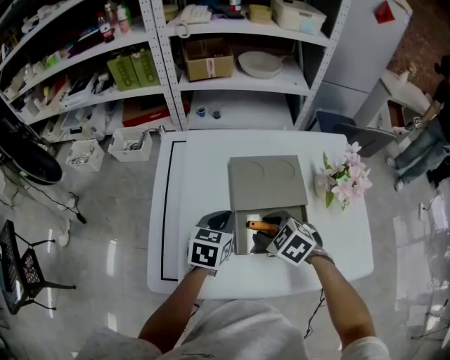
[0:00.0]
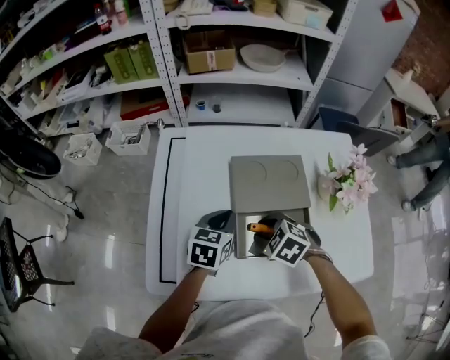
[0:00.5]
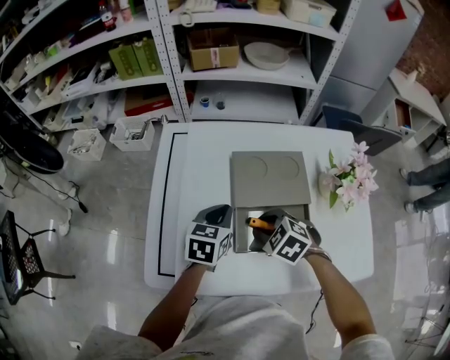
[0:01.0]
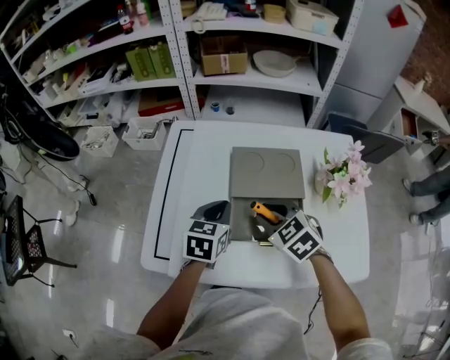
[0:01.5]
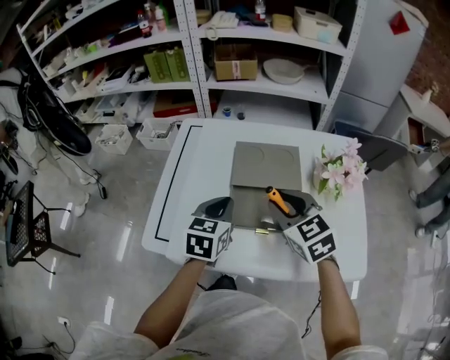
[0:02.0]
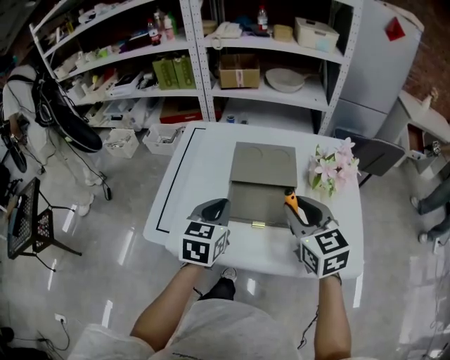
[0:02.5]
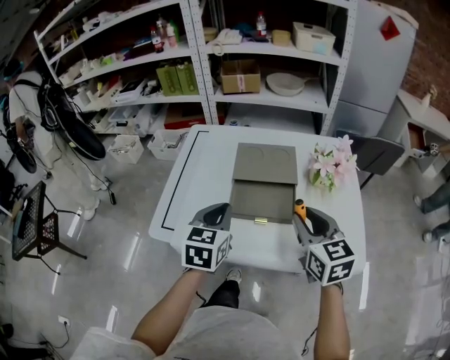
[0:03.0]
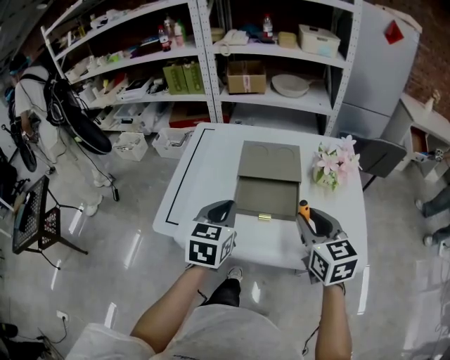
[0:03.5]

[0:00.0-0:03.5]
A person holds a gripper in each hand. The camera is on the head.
0:00.0 to 0:02.0: The left gripper is displaced backward and upward by roughly 10 cm. The right gripper is displaced upward by some 15 cm, and rotates roughly 30 degrees.
0:02.0 to 0:03.5: The left gripper is displaced backward by some 10 cm, while the right gripper moves backward and to the right, about 15 cm, and rotates roughly 20 degrees.

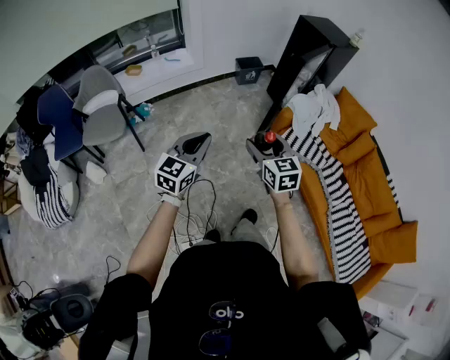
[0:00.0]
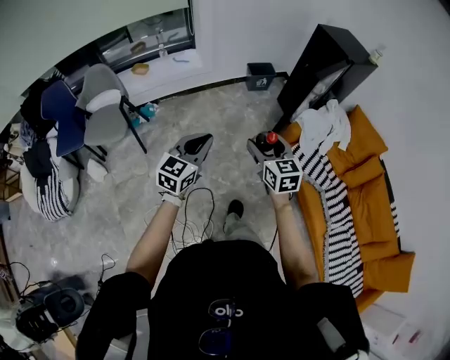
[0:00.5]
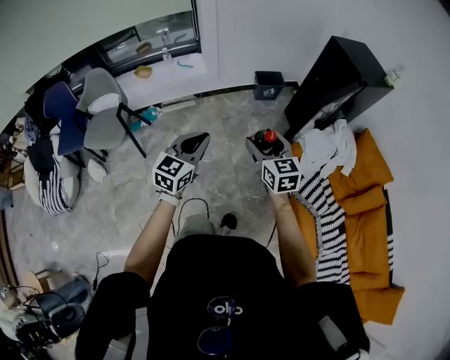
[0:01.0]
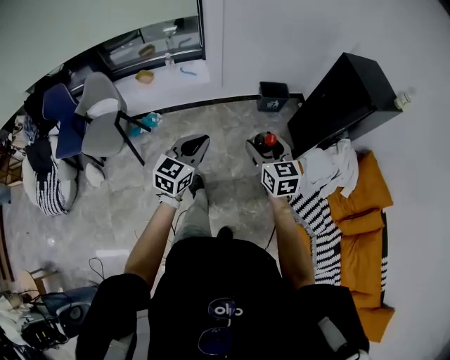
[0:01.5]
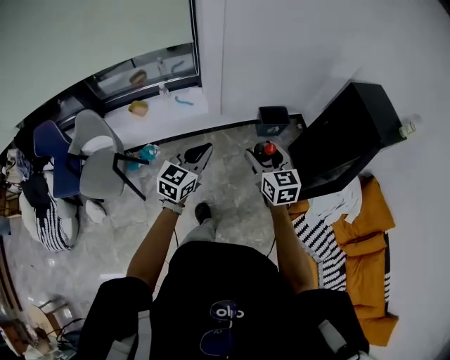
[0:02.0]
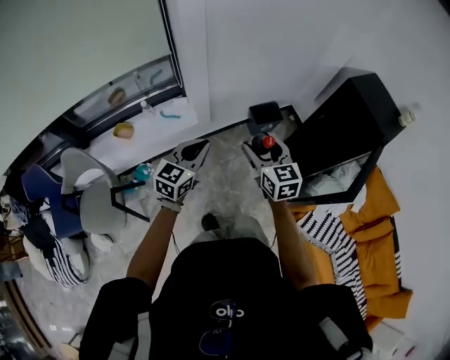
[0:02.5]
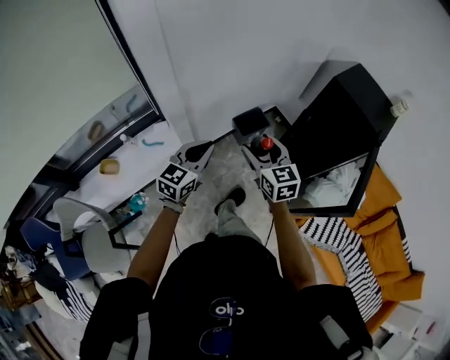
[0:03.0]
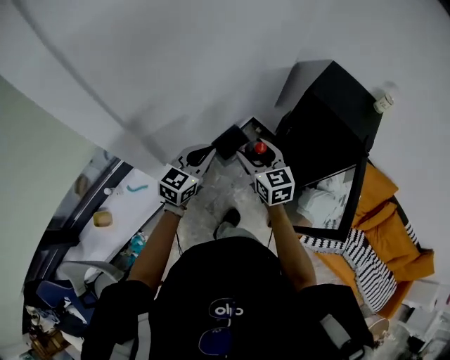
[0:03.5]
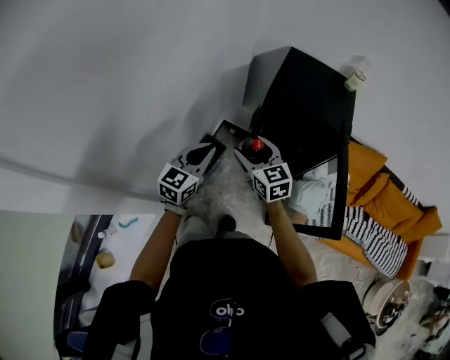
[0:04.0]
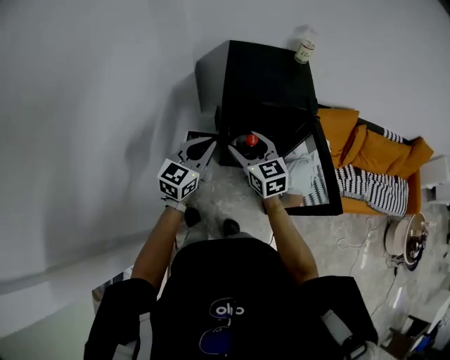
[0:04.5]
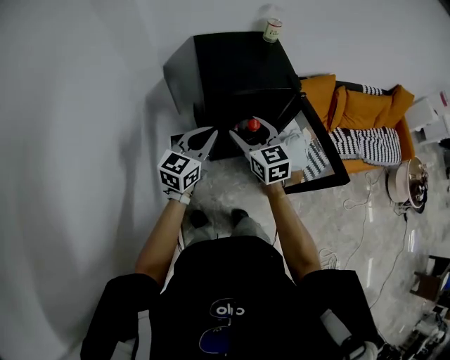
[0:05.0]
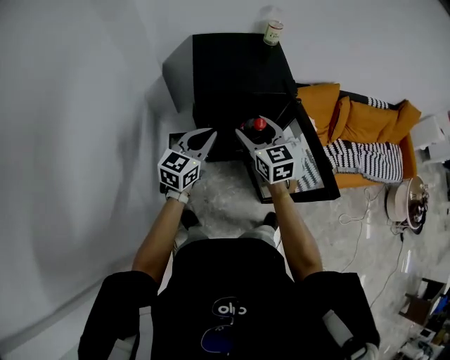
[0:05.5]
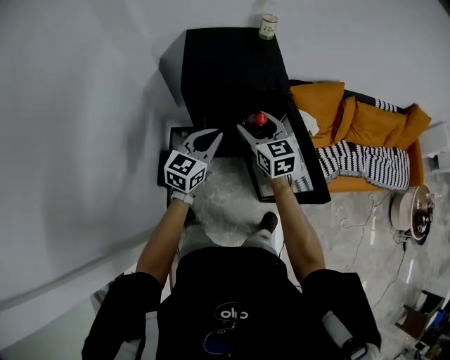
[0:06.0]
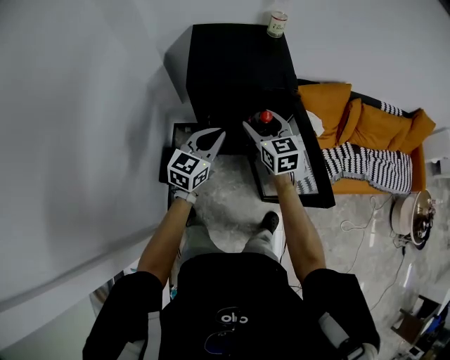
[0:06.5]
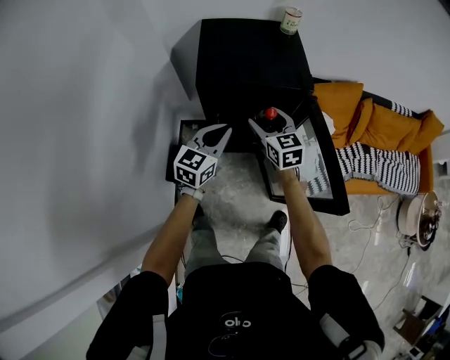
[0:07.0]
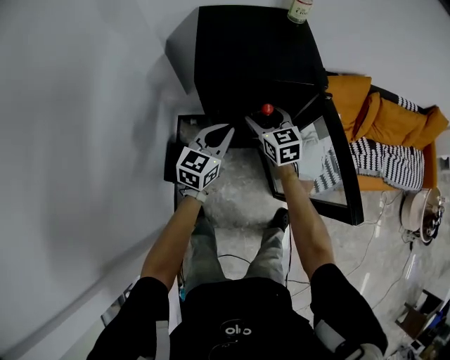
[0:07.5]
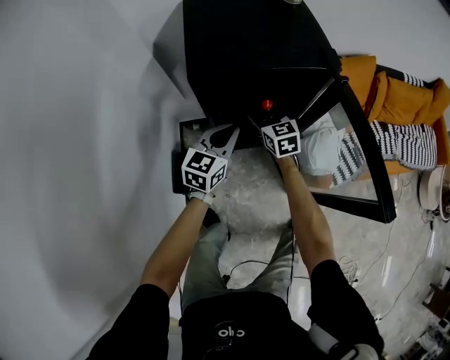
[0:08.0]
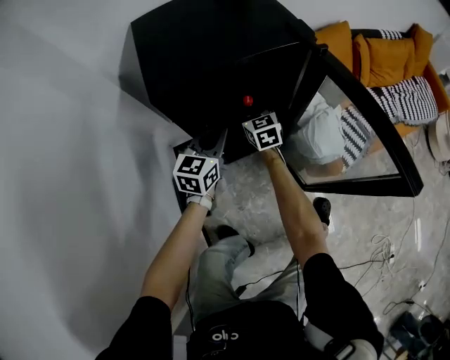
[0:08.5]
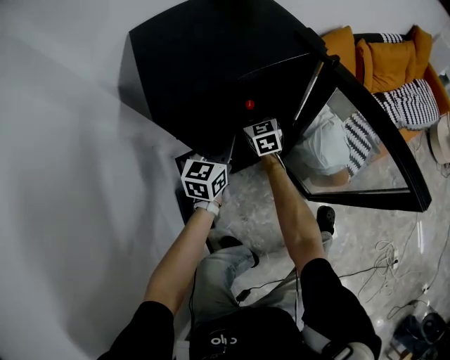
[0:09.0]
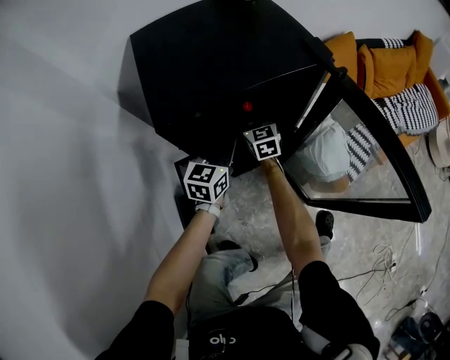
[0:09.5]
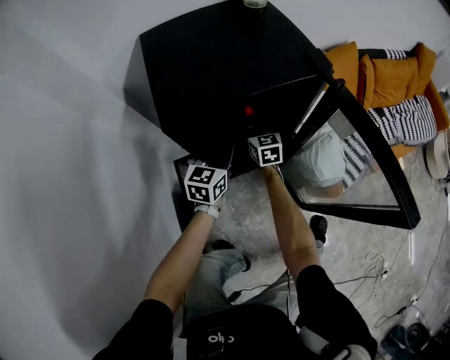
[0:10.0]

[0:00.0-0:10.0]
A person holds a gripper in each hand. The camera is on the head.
0:00.0 to 0:02.0: The pair of grippers is taken forward, roughly 60 cm.
0:02.0 to 0:04.0: The two grippers travel together, approximately 50 cm. The left gripper turns by about 50 degrees. The right gripper turns by roughly 40 degrees.
0:04.0 to 0:06.0: The left gripper changes place by approximately 25 cm, and rotates roughly 30 degrees. Meanwhile the right gripper shifts by some 25 cm, and swivels some 30 degrees.
0:06.0 to 0:08.0: The grippers both shift downward and forward by about 25 cm.
0:08.0 to 0:10.0: The right gripper travels downward and forward by roughly 15 cm, while the left gripper shifts approximately 10 cm forward and downward.

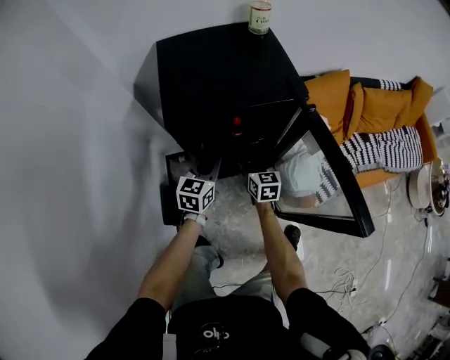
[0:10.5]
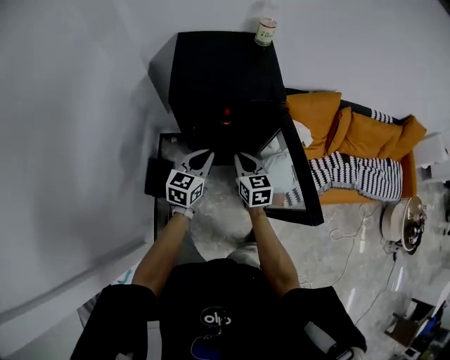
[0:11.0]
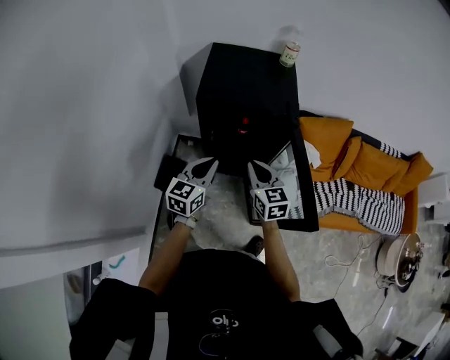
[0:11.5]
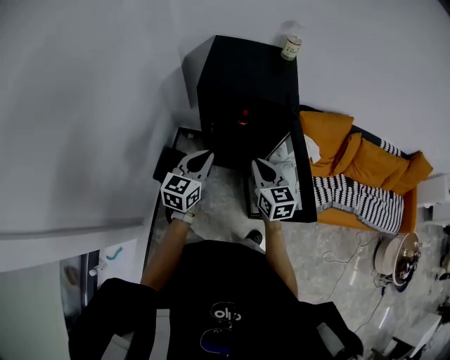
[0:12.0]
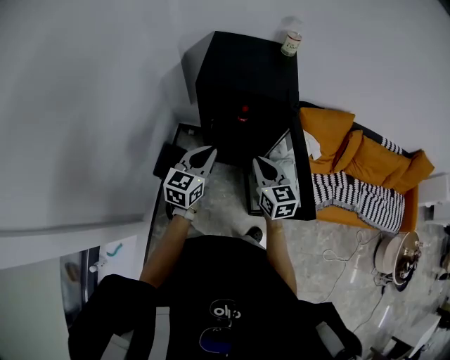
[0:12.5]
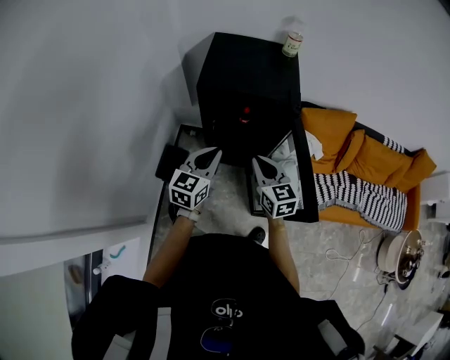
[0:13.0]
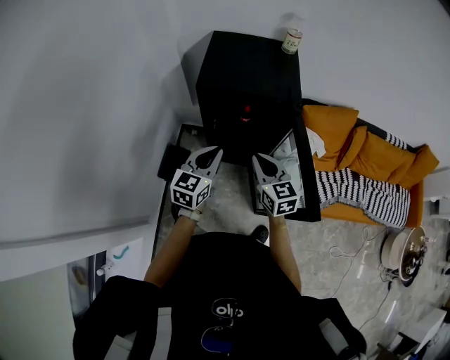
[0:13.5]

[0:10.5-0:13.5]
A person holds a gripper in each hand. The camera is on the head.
0:10.5 to 0:12.0: Both grippers travel together upward and backward, about 30 cm. The right gripper turns by some 30 degrees, and closes up.
0:12.0 to 0:13.5: The grippers make only small movements.

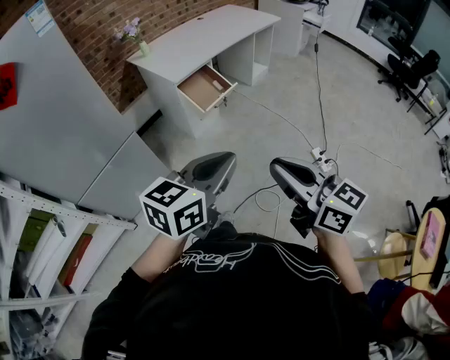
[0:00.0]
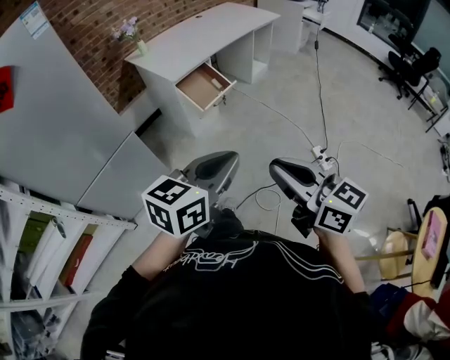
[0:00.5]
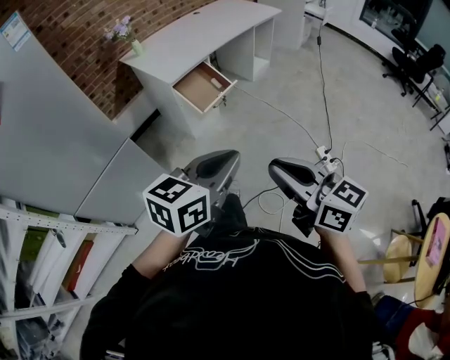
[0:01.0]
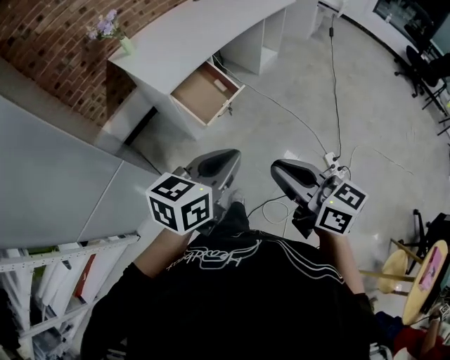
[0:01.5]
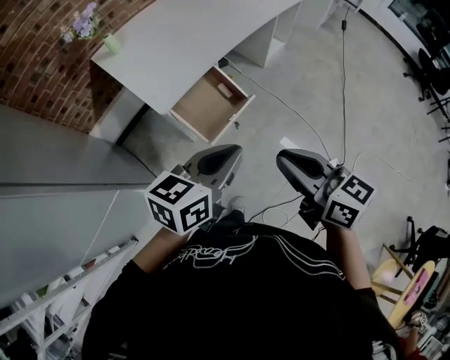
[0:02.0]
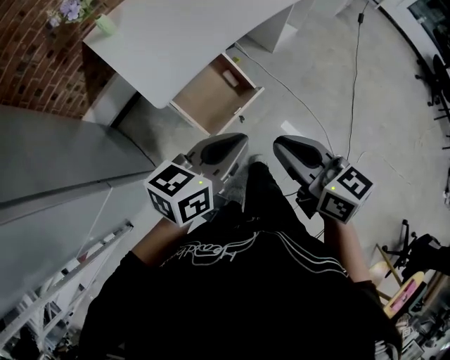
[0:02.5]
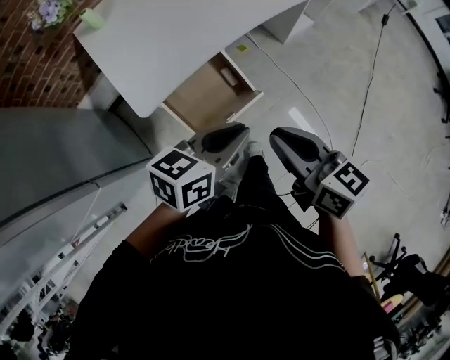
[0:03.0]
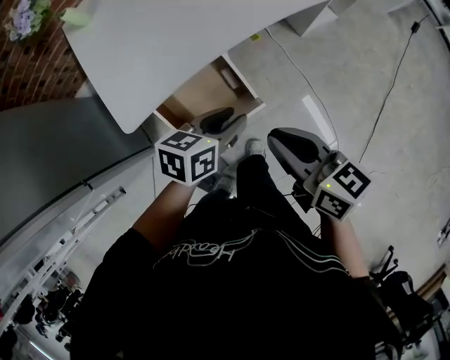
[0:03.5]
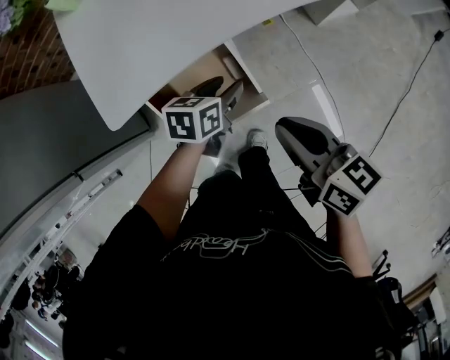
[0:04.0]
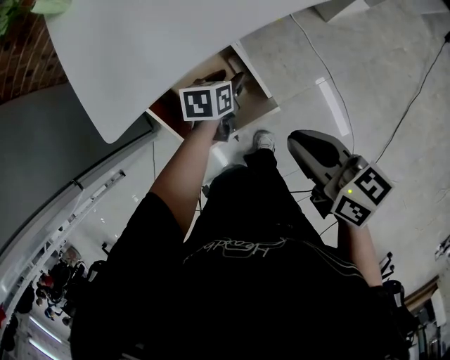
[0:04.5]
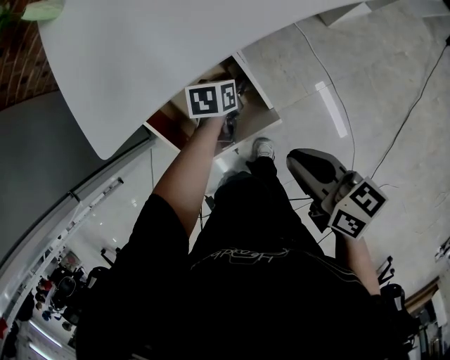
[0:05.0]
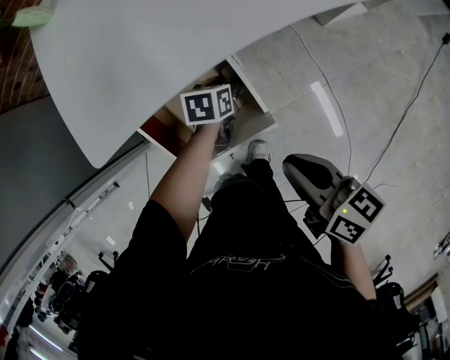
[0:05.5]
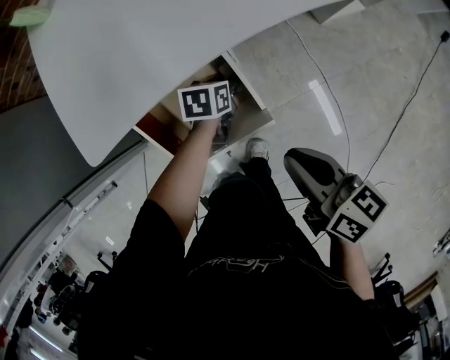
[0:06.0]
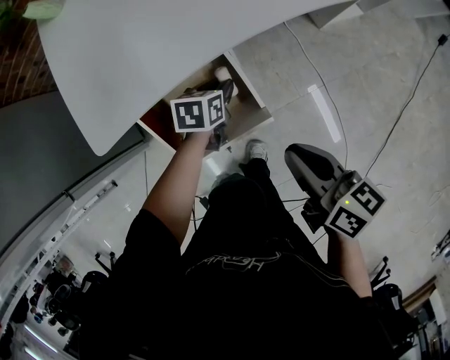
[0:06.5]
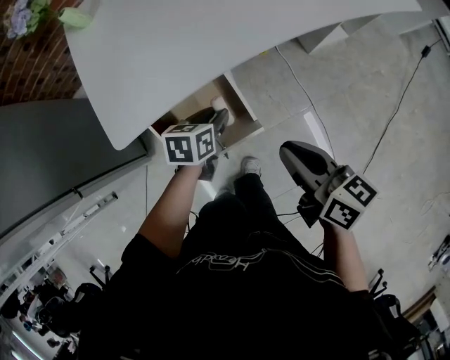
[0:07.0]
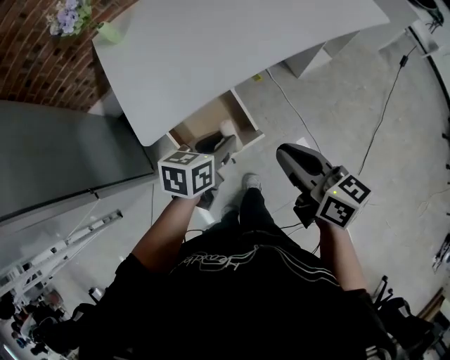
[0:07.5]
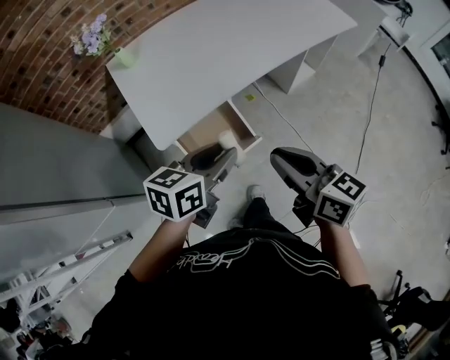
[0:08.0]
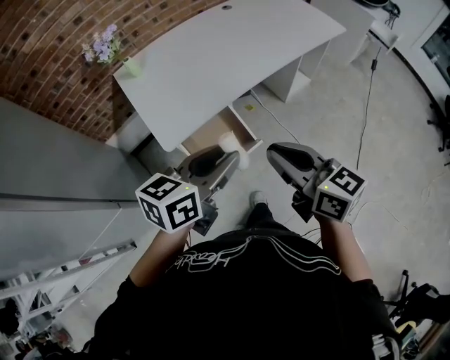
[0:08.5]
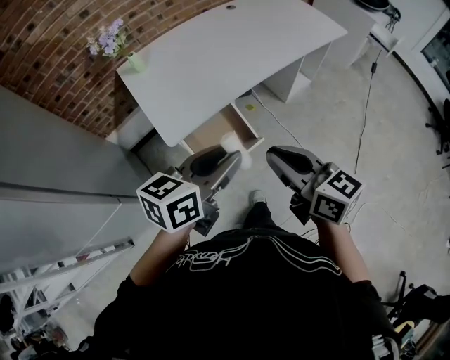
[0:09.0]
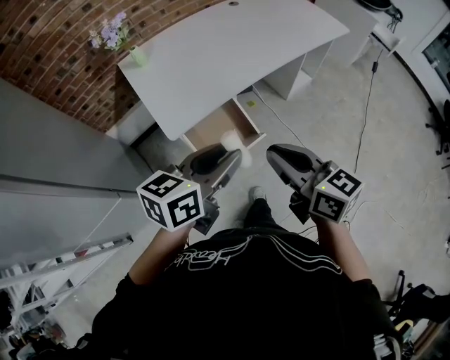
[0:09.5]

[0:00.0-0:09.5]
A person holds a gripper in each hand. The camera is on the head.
0:00.0 to 0:02.0: Both grippers are carried forward, about 50 cm.
0:02.0 to 0:04.0: Both grippers travel together forward and downward, some 50 cm. The right gripper rotates roughly 20 degrees, while the left gripper swivels about 40 degrees, and opens its fingers.
0:04.0 to 0:05.5: The right gripper moves downward, approximately 10 cm. Meanwhile the left gripper is displaced downward and forward by roughly 20 cm.
0:05.5 to 0:07.5: The right gripper shifts approximately 25 cm upward. Meanwhile the left gripper moves upward and backward, roughly 40 cm, and swivels approximately 20 degrees.
0:07.5 to 0:09.5: The left gripper shifts some 30 cm upward and backward, and changes its angle by approximately 20 degrees. Meanwhile the right gripper heads backward, upward and to the left, covering approximately 20 cm.
